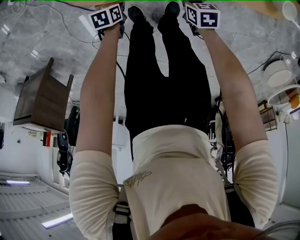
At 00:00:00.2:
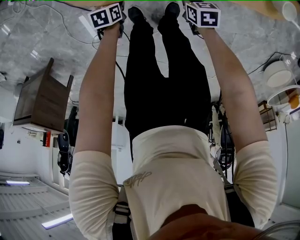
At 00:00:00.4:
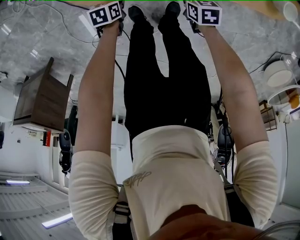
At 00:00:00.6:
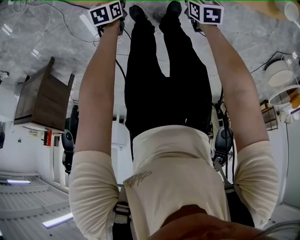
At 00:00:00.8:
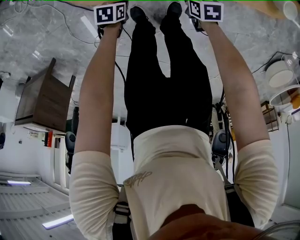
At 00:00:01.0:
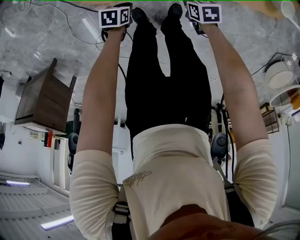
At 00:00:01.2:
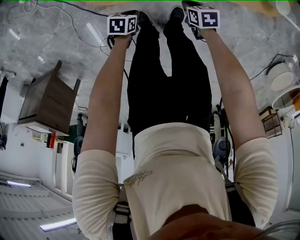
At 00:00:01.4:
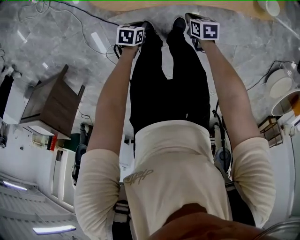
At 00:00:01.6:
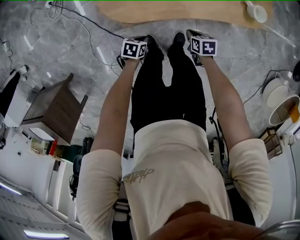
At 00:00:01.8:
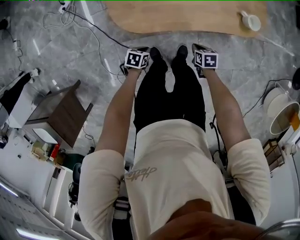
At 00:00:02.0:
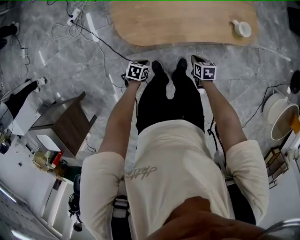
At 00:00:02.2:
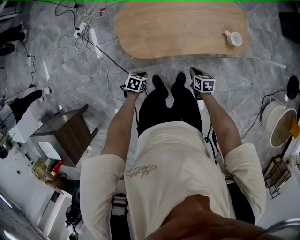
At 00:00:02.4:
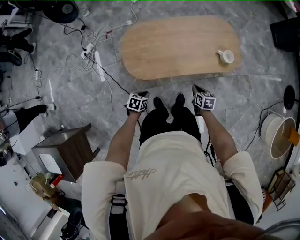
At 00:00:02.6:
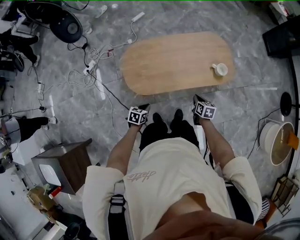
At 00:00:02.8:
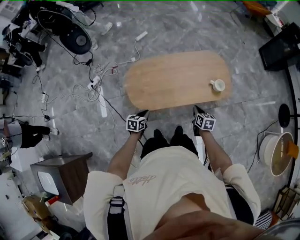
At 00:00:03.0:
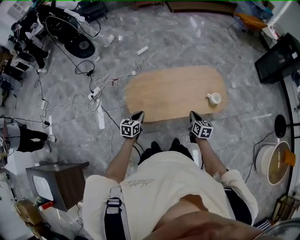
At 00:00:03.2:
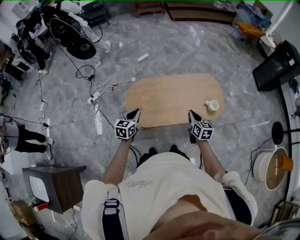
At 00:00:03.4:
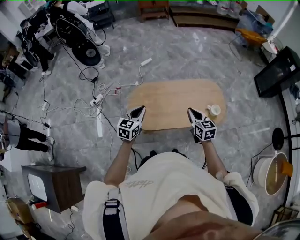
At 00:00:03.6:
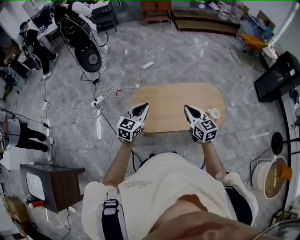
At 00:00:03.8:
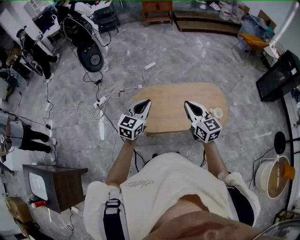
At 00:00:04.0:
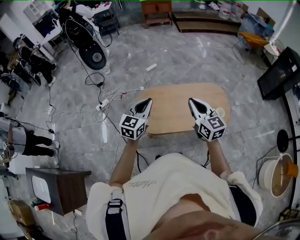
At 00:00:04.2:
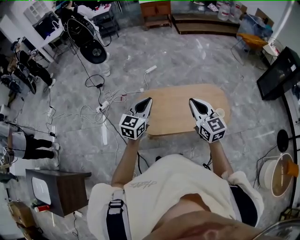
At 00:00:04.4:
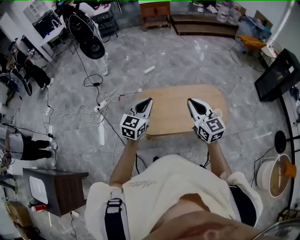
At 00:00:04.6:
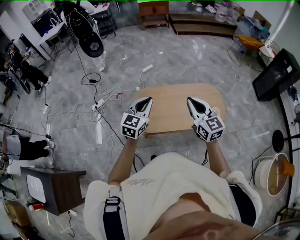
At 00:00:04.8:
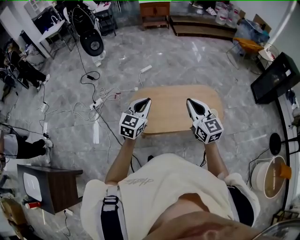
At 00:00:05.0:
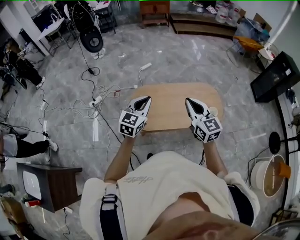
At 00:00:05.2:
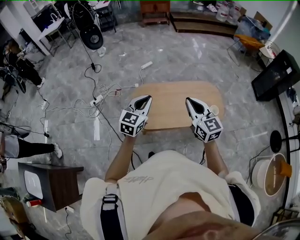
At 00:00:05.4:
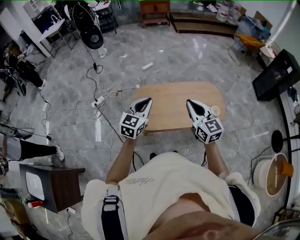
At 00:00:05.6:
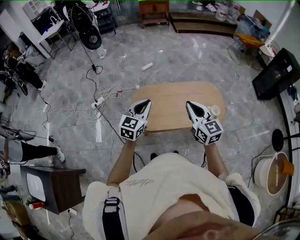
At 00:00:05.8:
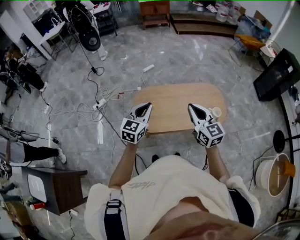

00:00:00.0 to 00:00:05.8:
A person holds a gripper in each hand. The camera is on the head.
00:00:00.0 to 00:00:01.4: The grippers both shift upward by approximately 10 cm.
00:00:01.4 to 00:00:02.8: The grippers both shift upward by roughly 40 cm. The left gripper changes its angle by some 30 degrees; the right gripper changes its angle by about 40 degrees.
00:00:02.8 to 00:00:04.4: The grippers both shift upward by roughly 40 cm. The right gripper points its fingers approximately 40 degrees further upward. Meanwhile the left gripper tips its fingers upward by about 40 degrees.
00:00:04.4 to 00:00:05.8: The grippers stay close to where they were, moving slightly.

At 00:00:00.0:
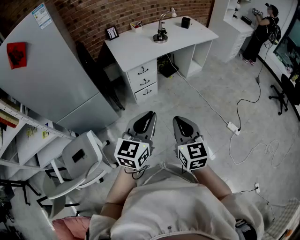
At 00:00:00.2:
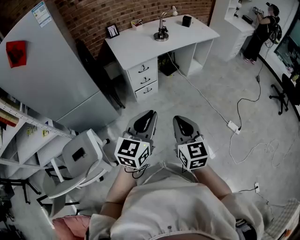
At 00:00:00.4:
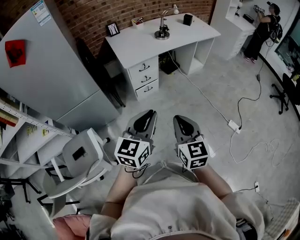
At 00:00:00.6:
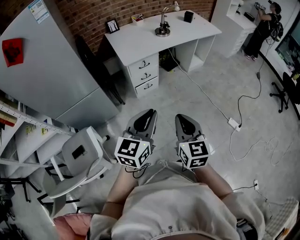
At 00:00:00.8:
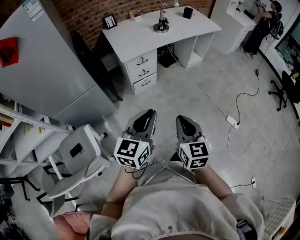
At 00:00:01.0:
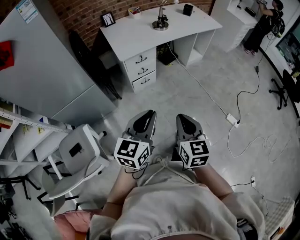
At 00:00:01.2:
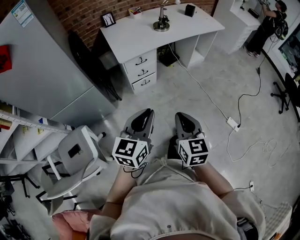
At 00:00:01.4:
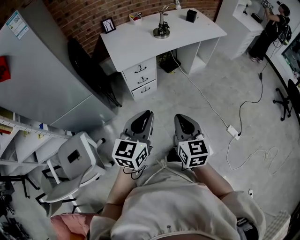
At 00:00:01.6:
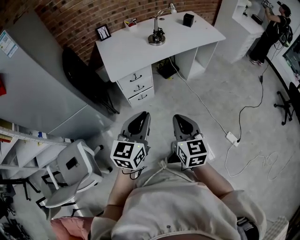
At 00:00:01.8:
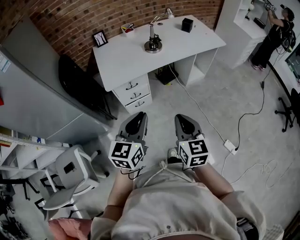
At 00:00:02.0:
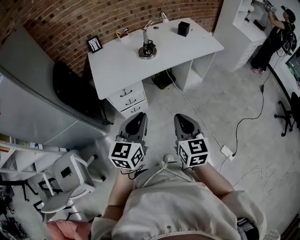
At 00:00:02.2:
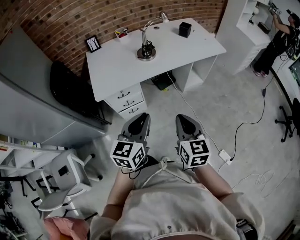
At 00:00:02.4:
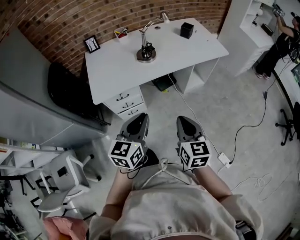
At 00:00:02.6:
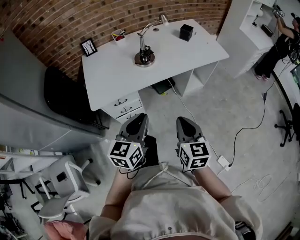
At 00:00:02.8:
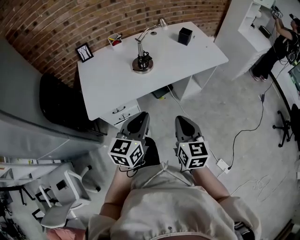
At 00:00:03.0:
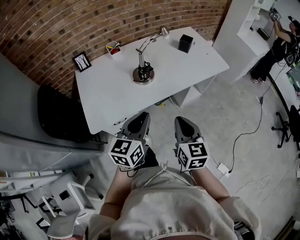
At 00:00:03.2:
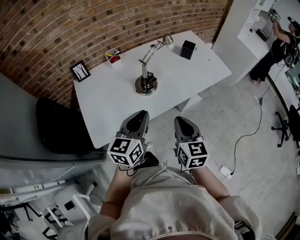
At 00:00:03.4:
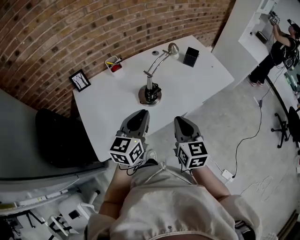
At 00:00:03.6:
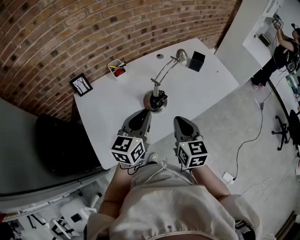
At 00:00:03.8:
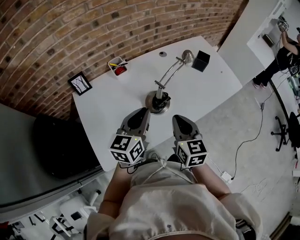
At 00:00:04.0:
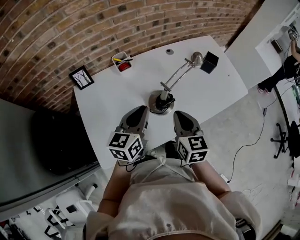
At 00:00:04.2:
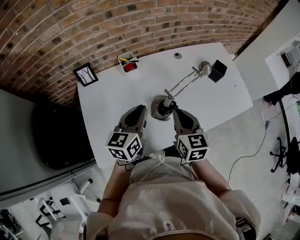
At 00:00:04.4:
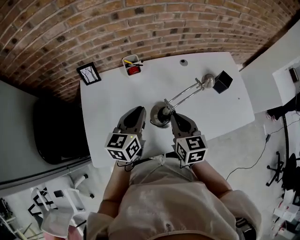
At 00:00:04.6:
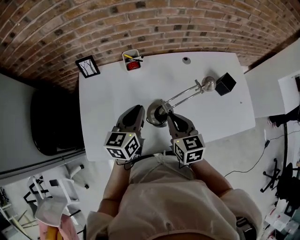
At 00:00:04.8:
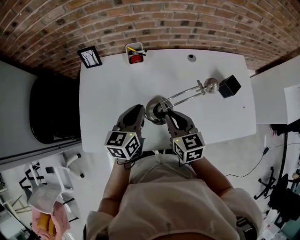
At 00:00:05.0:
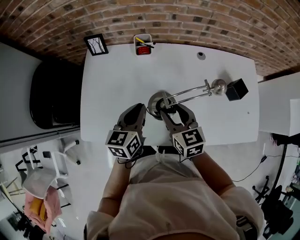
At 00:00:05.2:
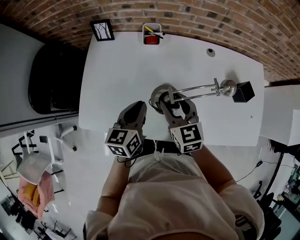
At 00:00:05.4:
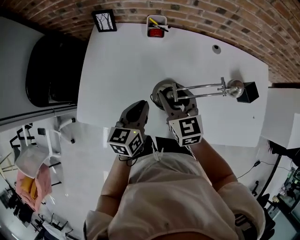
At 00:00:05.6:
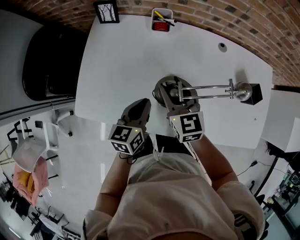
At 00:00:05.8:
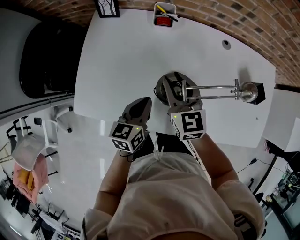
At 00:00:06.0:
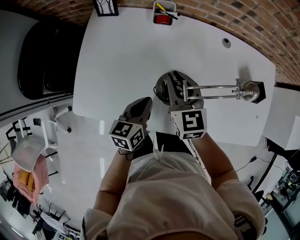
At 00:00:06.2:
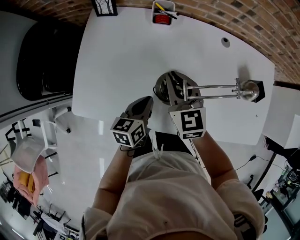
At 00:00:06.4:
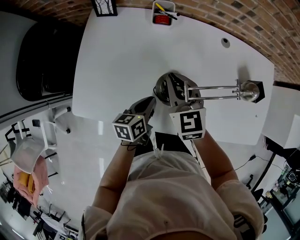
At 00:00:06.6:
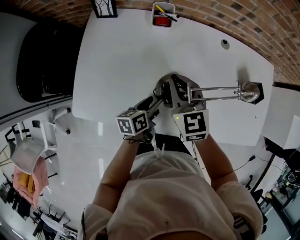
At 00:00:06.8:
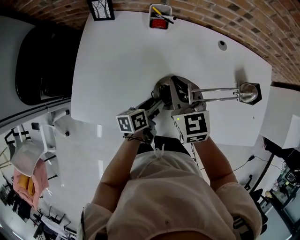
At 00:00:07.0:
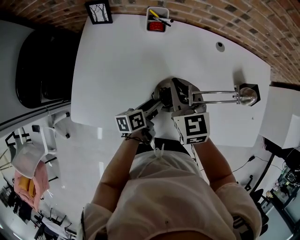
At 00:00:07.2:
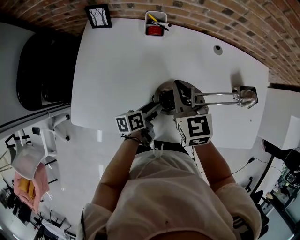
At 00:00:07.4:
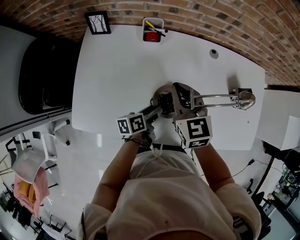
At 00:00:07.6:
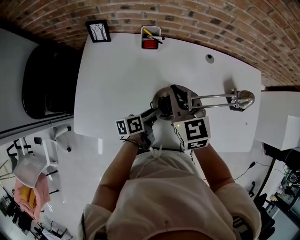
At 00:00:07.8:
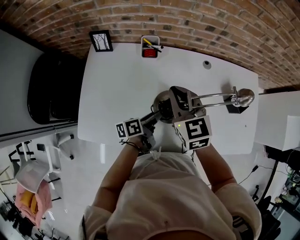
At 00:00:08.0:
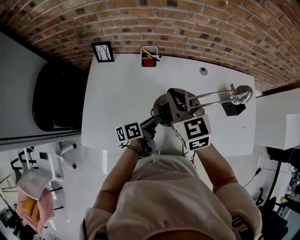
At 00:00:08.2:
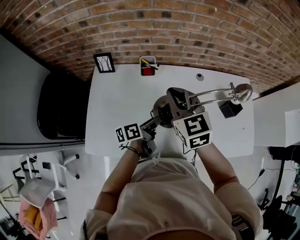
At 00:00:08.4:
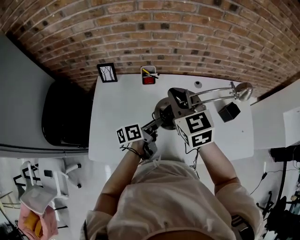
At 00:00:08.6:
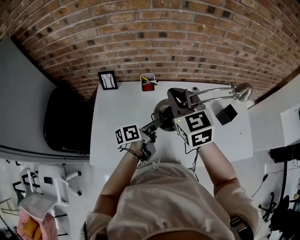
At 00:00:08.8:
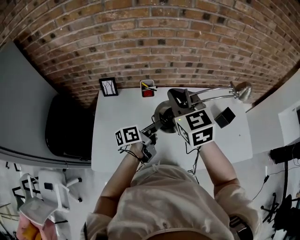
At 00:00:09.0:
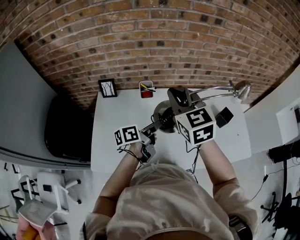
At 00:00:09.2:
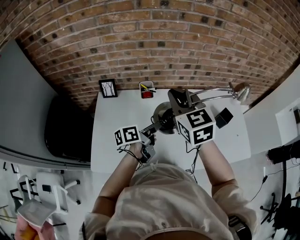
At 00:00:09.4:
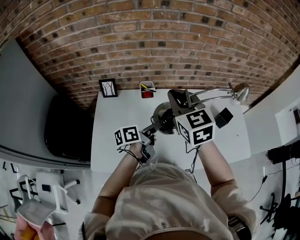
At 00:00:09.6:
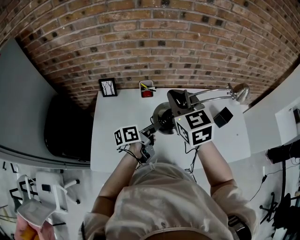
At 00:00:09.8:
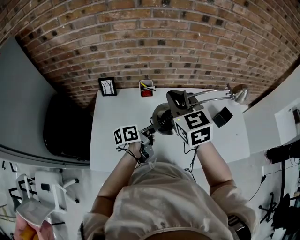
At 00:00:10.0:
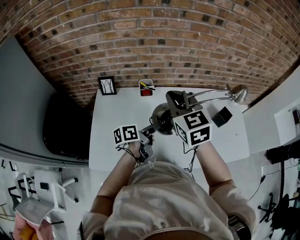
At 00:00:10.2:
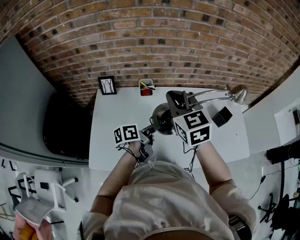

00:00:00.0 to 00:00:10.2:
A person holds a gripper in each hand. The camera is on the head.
00:00:00.0 to 00:00:01.4: The grippers both shift forward by roughly 10 cm.
00:00:01.4 to 00:00:03.0: The pair of grippers is taken forward, some 50 cm.
00:00:03.0 to 00:00:04.4: The two grippers go approximately 35 cm forward and to the left.
00:00:04.4 to 00:00:05.8: The right gripper is displaced forward and to the left by roughly 10 cm, rotates approximately 30 degrees, and opens, while the left gripper heads downward and backward, covering approximately 15 cm, and turns by some 20 degrees.
00:00:05.8 to 00:00:07.2: The right gripper closes, while the left gripper heads downward and to the right, covering approximately 10 cm, swivels some 40 degrees, and opens.
00:00:07.2 to 00:00:08.8: Both grippers travel together upward, approximately 20 cm. The left gripper changes its angle by about 20 degrees.
00:00:08.8 to 00:00:10.2: The grippers stay close to where they were, moving slightly.

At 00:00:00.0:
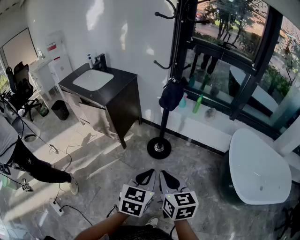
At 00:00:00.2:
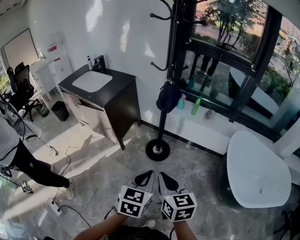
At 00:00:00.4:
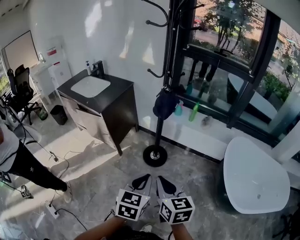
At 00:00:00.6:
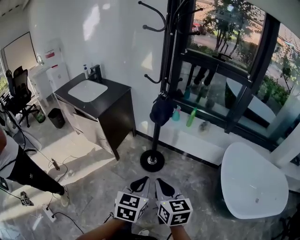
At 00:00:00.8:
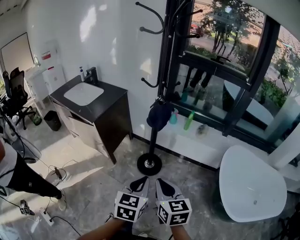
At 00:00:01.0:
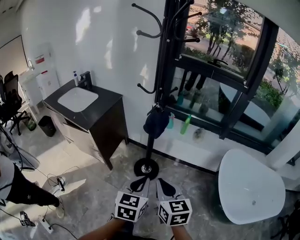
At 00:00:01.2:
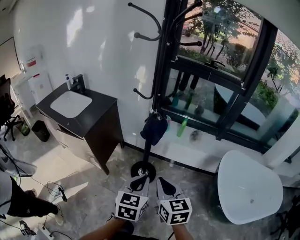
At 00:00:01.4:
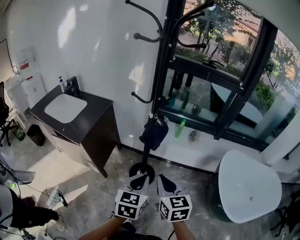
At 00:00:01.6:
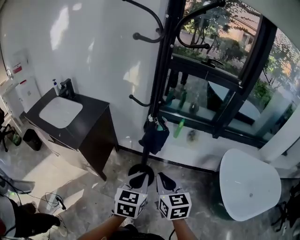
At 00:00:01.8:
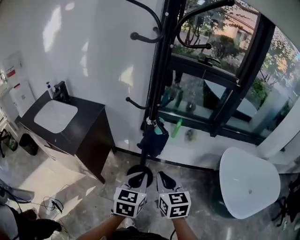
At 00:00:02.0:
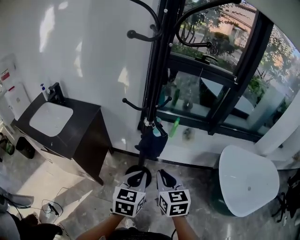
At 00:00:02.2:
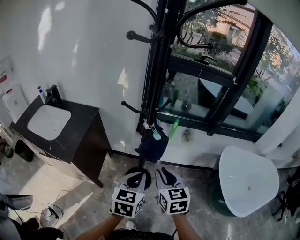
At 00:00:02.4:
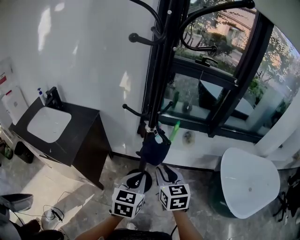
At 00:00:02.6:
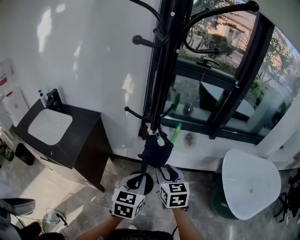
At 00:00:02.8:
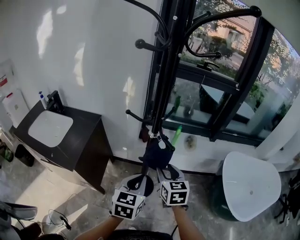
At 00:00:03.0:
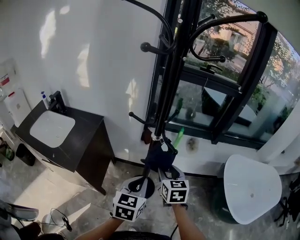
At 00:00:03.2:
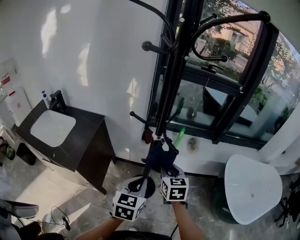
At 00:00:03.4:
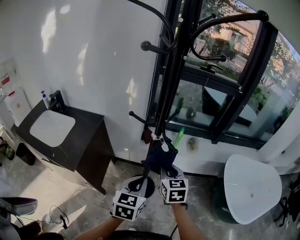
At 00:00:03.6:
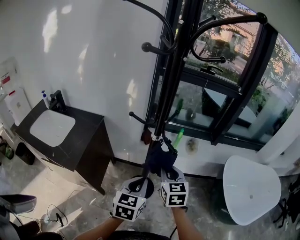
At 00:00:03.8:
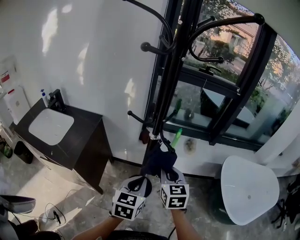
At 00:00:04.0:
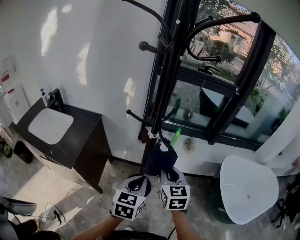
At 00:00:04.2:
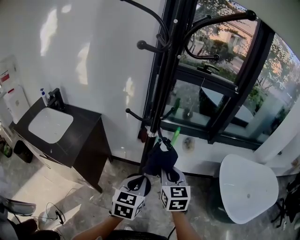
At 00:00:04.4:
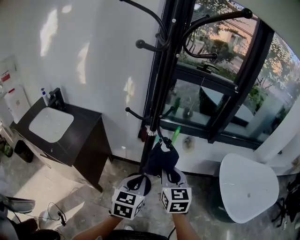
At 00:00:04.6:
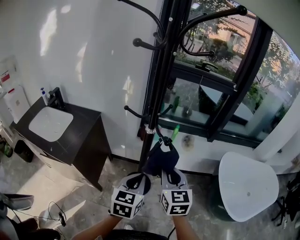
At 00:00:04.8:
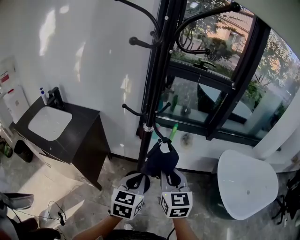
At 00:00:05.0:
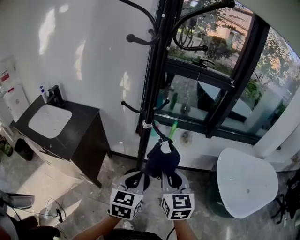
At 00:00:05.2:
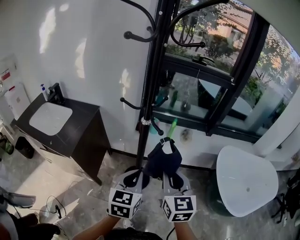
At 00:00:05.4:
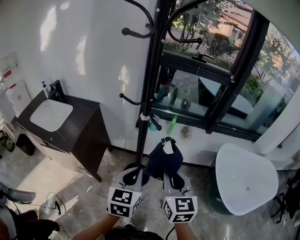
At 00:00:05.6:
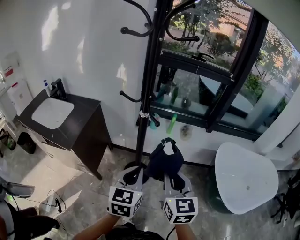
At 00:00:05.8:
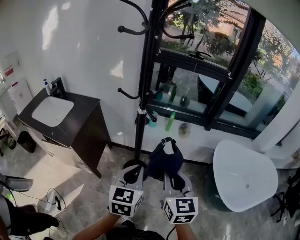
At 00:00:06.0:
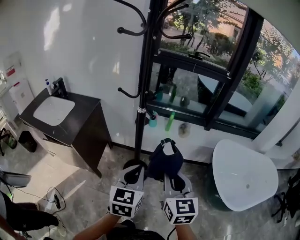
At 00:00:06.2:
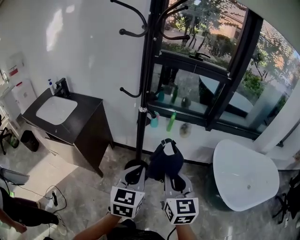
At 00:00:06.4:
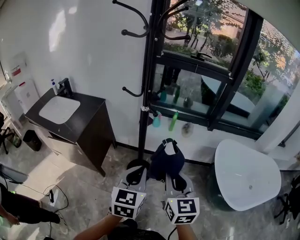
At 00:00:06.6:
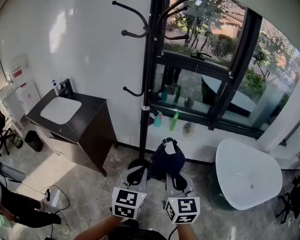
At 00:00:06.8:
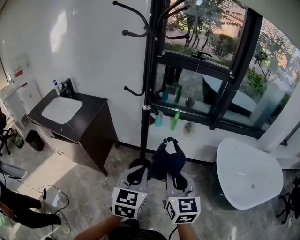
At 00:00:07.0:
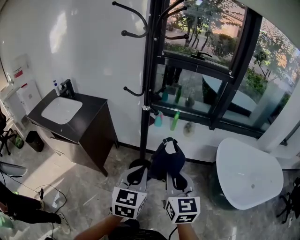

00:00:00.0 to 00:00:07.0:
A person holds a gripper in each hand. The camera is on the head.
00:00:00.0 to 00:00:01.4: The grippers both shift forward by approximately 20 cm.
00:00:01.4 to 00:00:02.8: The right gripper goes roughly 15 cm forward, and opens its fingers. Meanwhile the left gripper shifts some 15 cm forward and to the left.
00:00:02.8 to 00:00:04.2: The right gripper closes.
00:00:04.2 to 00:00:05.6: The right gripper moves backward and to the right, about 15 cm. The left gripper travels backward by some 5 cm.
00:00:05.6 to 00:00:07.0: The two grippers go about 5 cm backward.
